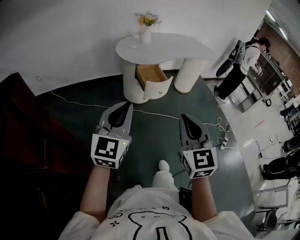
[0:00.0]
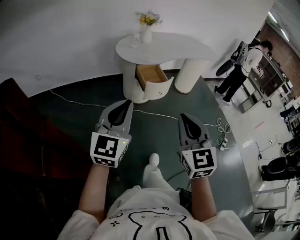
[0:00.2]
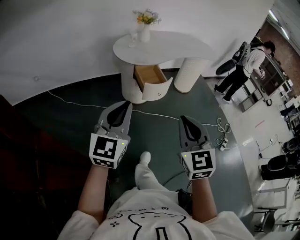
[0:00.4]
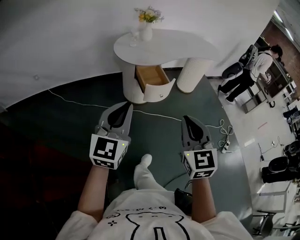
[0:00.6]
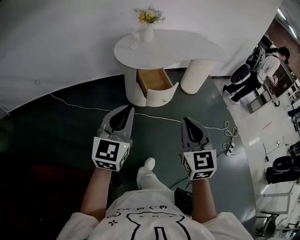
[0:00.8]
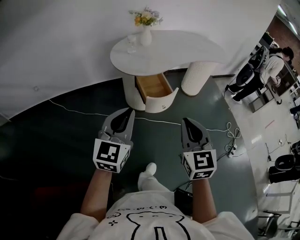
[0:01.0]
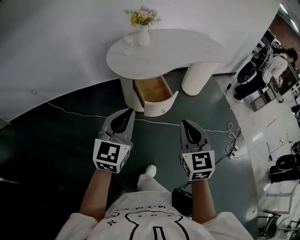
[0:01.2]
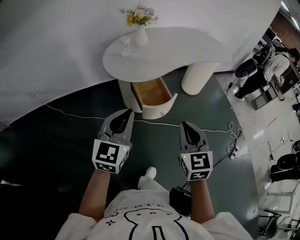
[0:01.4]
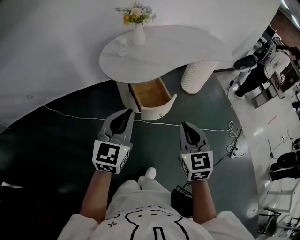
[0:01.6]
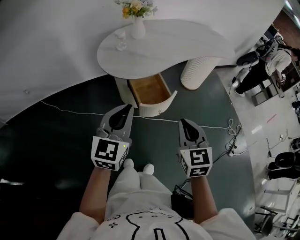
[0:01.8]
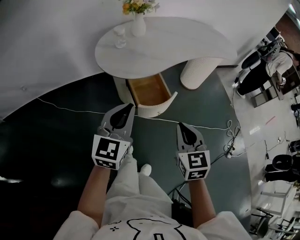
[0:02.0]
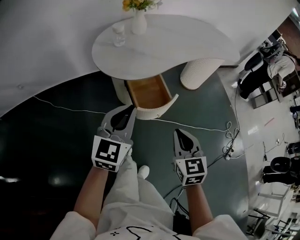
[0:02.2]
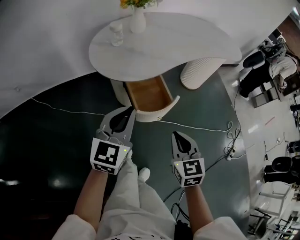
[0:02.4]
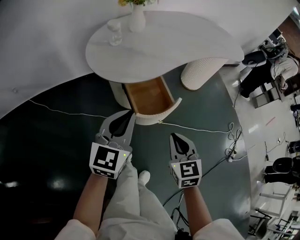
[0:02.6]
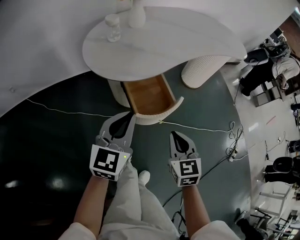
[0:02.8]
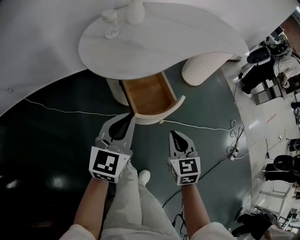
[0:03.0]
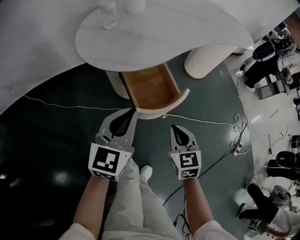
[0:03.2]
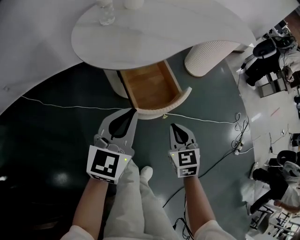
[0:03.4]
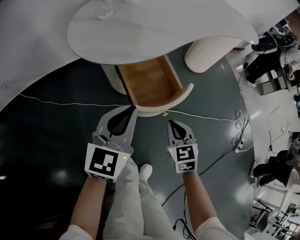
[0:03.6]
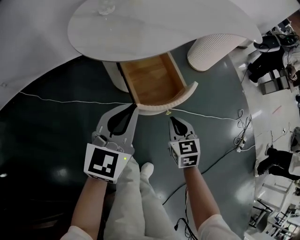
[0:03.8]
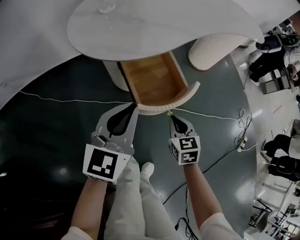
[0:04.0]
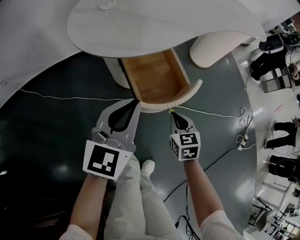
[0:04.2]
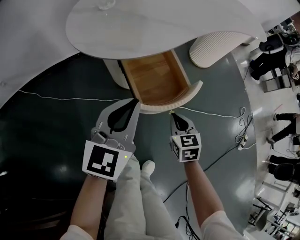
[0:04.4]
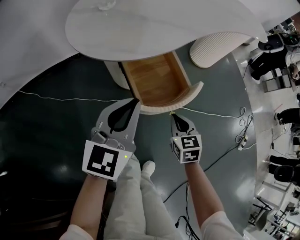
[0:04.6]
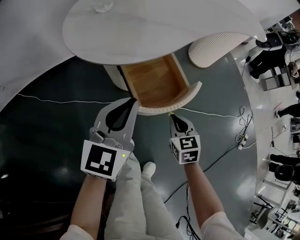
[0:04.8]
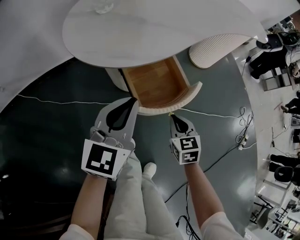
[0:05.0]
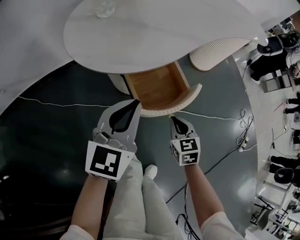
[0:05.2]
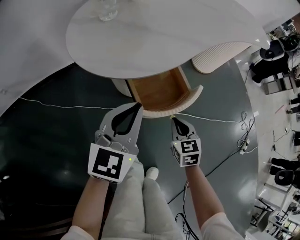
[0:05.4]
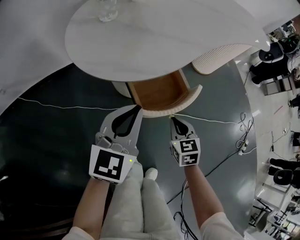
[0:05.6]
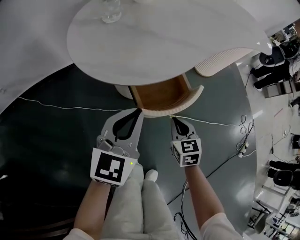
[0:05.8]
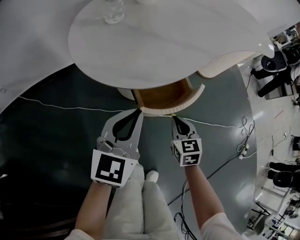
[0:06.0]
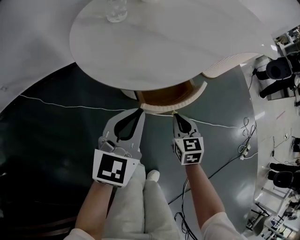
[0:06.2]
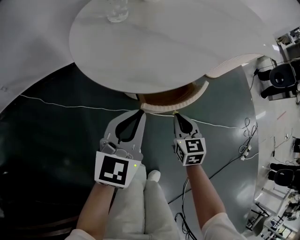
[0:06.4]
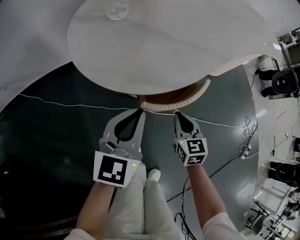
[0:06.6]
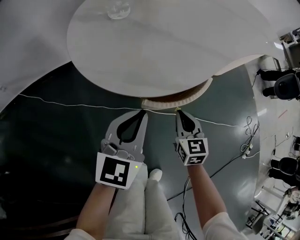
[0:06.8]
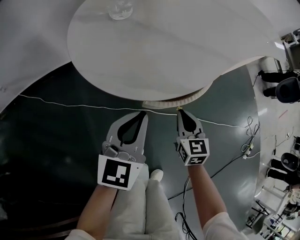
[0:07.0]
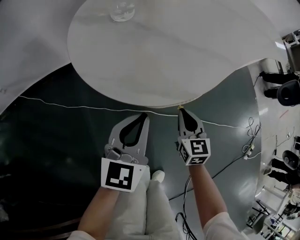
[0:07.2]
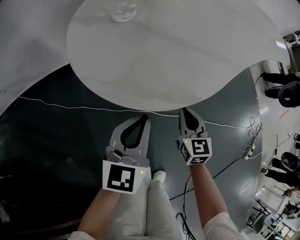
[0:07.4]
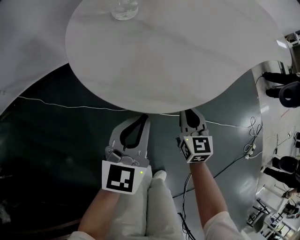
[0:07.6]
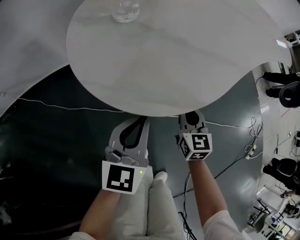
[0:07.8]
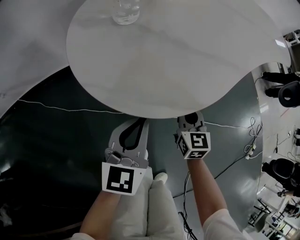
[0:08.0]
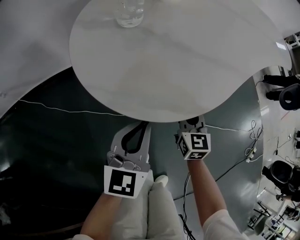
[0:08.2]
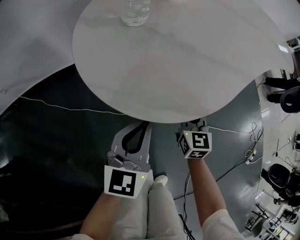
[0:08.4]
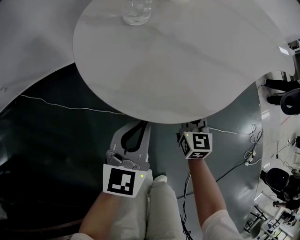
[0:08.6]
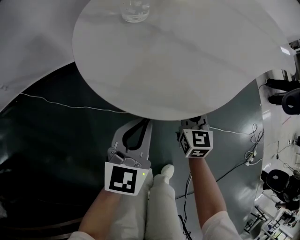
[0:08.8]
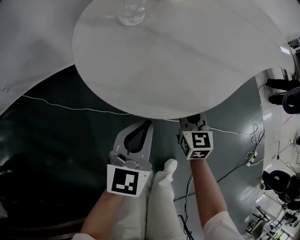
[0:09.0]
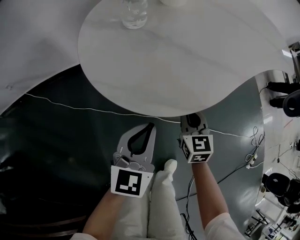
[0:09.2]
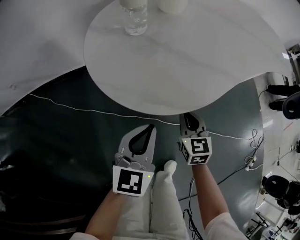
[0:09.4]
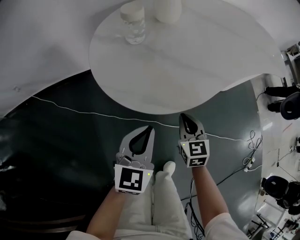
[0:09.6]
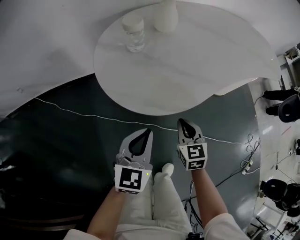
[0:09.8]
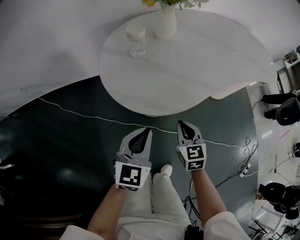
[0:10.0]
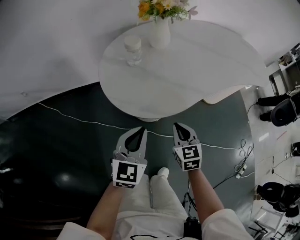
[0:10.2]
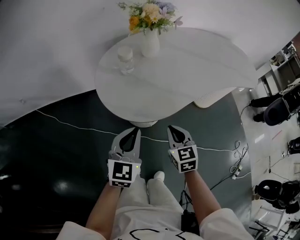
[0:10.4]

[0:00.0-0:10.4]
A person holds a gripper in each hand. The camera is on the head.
0:00.0 to 0:01.4: Both grippers travel together forward, approximately 35 cm.
0:01.4 to 0:03.0: The grippers both shift downward and forward by some 30 cm.
0:03.0 to 0:04.4: The left gripper moves downward, some 5 cm; the right gripper is displaced downward by about 15 cm.
0:04.4 to 0:06.0: The left gripper travels forward by about 5 cm; the right gripper is displaced forward and to the left by about 10 cm.
0:06.0 to 0:07.4: The right gripper moves forward, about 10 cm, while the left gripper shifts by some 10 cm.
0:07.4 to 0:09.0: The right gripper changes place by roughly 5 cm.
0:09.0 to 0:10.4: The left gripper is displaced upward by about 20 cm. The right gripper goes roughly 20 cm upward and backward.

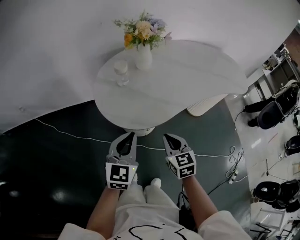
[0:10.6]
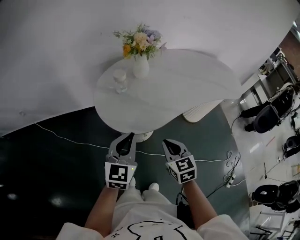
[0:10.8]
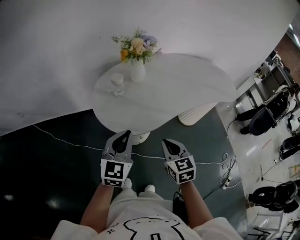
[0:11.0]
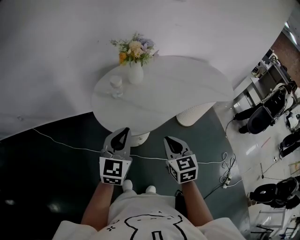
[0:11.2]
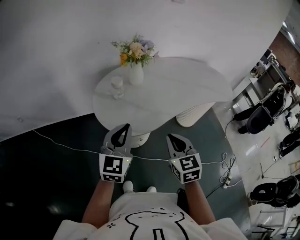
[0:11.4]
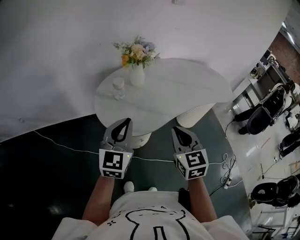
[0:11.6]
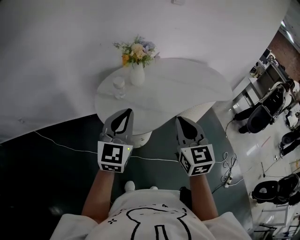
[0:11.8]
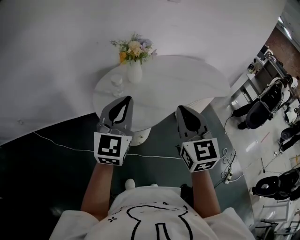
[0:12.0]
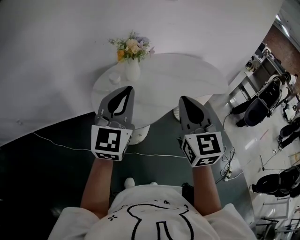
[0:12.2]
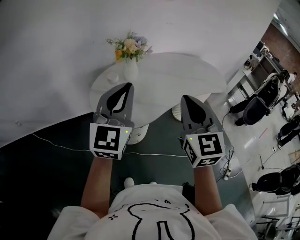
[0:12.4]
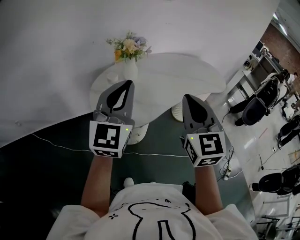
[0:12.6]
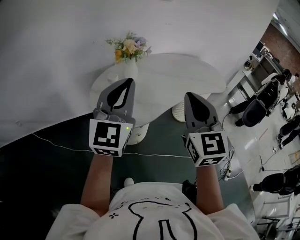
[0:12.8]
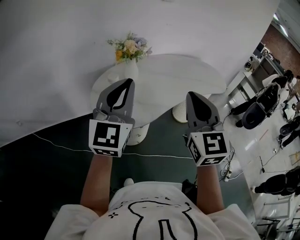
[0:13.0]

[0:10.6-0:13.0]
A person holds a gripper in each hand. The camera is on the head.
0:10.6 to 0:11.8: Both grippers travel together upward, approximately 20 cm. The right gripper swivels about 20 degrees.
0:11.8 to 0:13.0: Both grippers move upward, some 10 cm.

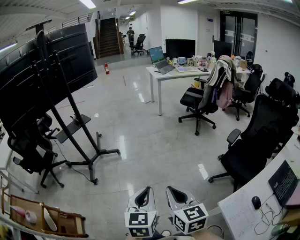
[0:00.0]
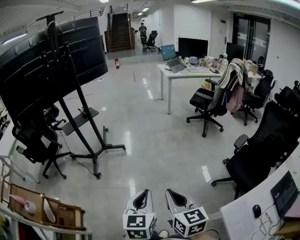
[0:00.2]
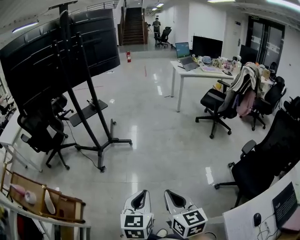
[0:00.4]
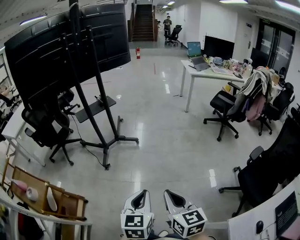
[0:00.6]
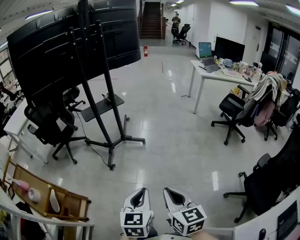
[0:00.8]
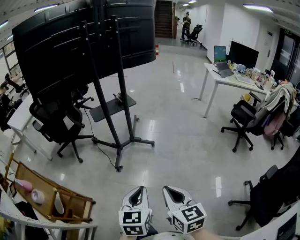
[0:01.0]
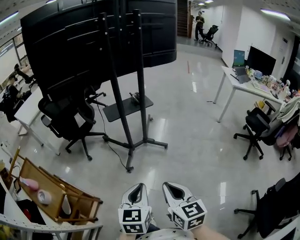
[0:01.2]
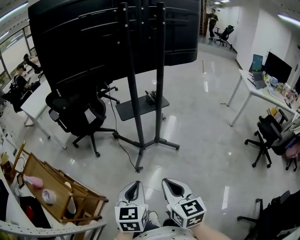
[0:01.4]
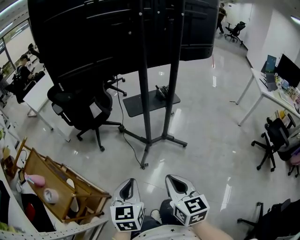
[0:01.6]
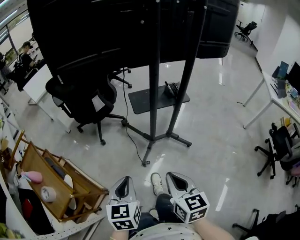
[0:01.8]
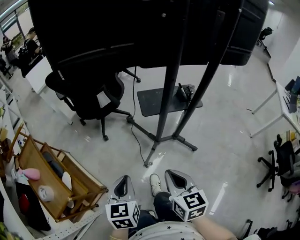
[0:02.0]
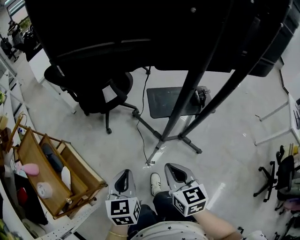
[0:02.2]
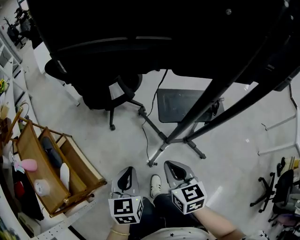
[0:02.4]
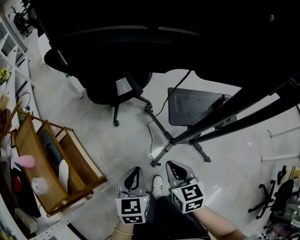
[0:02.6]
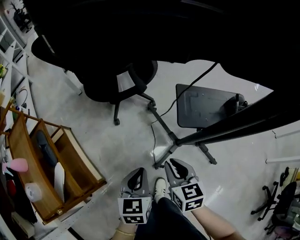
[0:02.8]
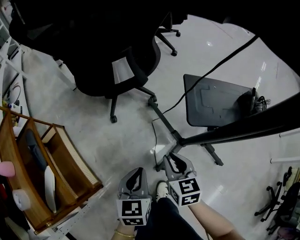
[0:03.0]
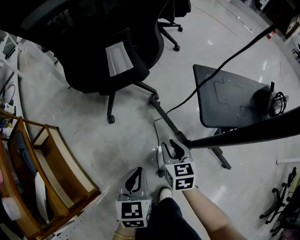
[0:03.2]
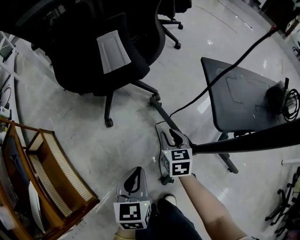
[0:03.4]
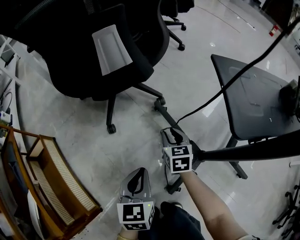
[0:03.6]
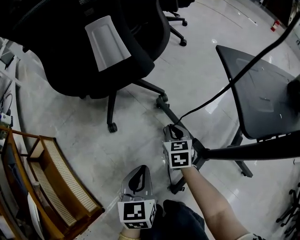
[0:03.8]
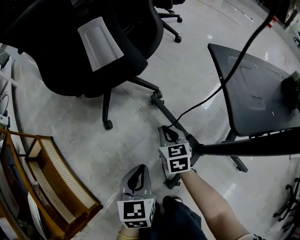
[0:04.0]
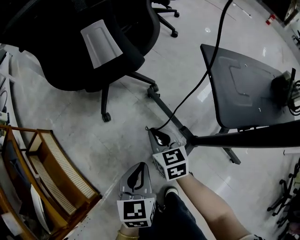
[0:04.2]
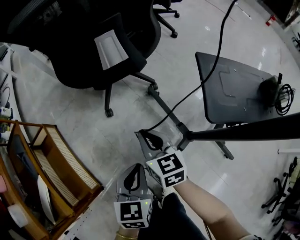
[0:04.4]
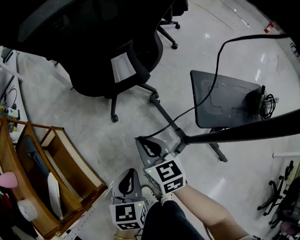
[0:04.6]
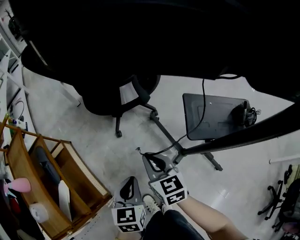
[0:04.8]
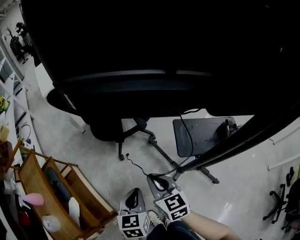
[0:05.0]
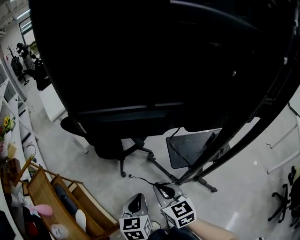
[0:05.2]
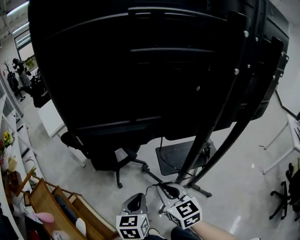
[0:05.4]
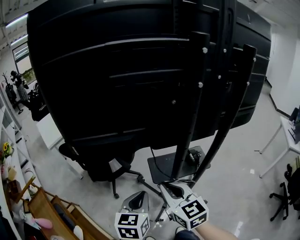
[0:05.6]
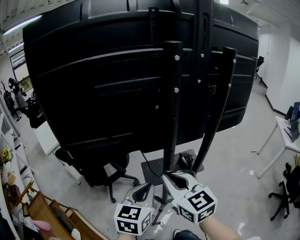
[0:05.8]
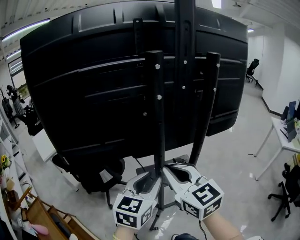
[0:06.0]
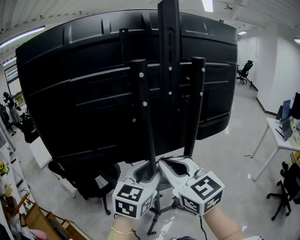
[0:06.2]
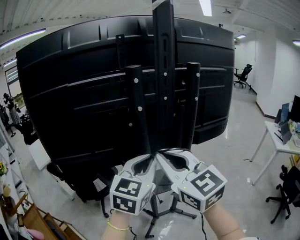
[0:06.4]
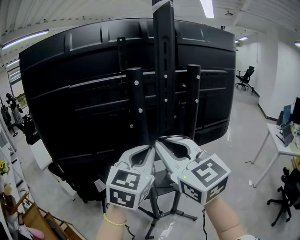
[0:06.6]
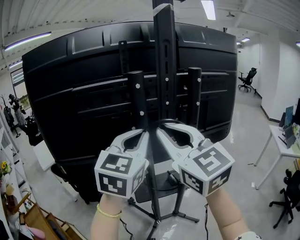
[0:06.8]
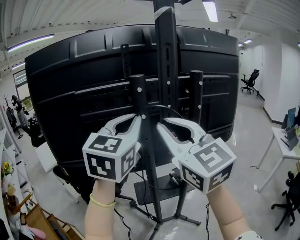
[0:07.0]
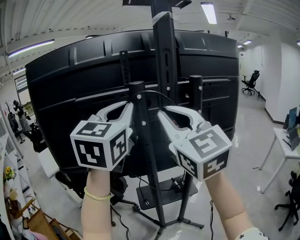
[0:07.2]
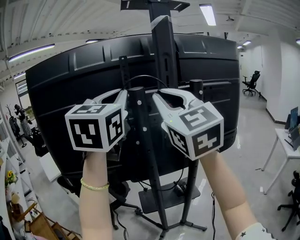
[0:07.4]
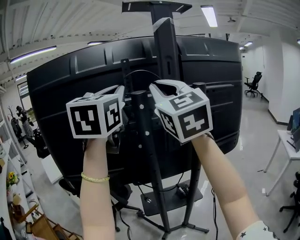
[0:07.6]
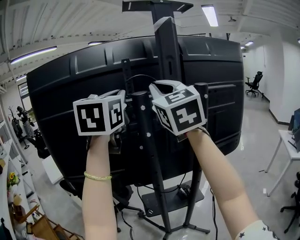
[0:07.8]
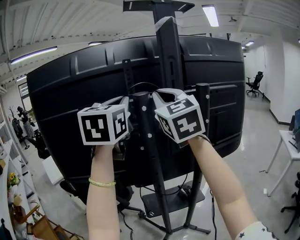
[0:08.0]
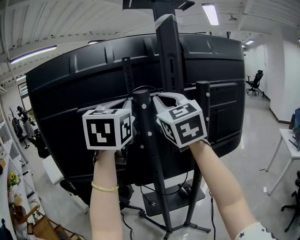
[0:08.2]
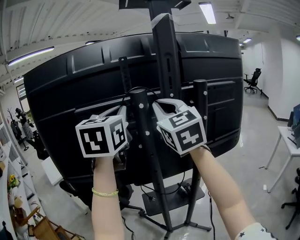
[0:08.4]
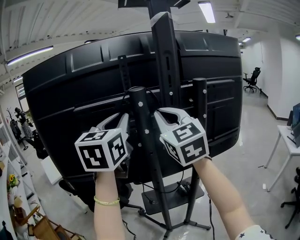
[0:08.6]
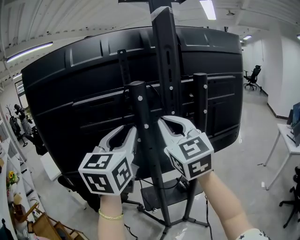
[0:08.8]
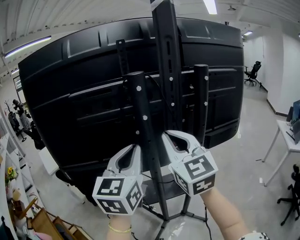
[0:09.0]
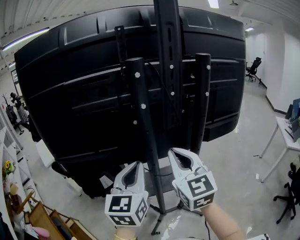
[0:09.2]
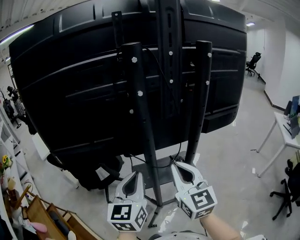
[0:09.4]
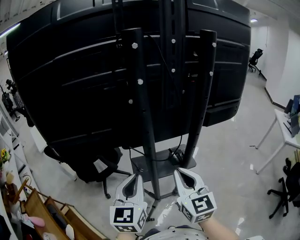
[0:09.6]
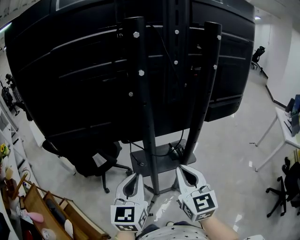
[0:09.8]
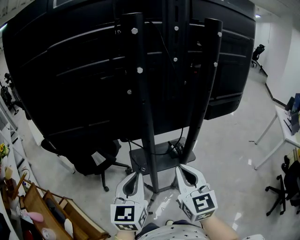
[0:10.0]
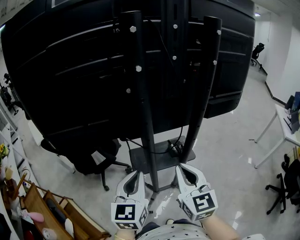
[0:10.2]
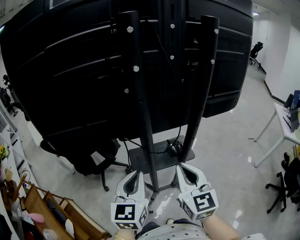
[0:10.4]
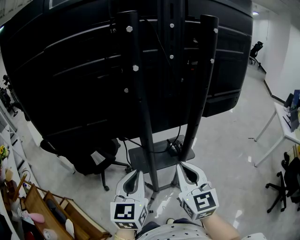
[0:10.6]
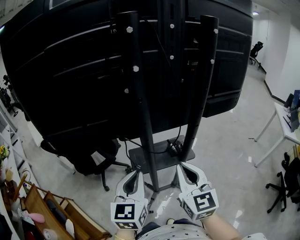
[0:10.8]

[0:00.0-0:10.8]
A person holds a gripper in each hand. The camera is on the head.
0:00.0 to 0:01.6: Both grippers are carried roughly 60 cm. The left gripper turns by approximately 40 degrees, while the right gripper turns by approximately 40 degrees.
0:01.6 to 0:03.0: The two grippers go some 50 cm forward and downward. The right gripper turns by some 30 degrees. The left gripper swivels some 20 degrees.
0:03.0 to 0:04.6: The right gripper moves to the left and forward, roughly 15 cm, and reaches approximately 30 cm downward, then returns. Meanwhile the left gripper travels to the left by about 5 cm, and reaches some 20 cm downward, then returns.
0:04.6 to 0:06.2: The two grippers go roughly 60 cm upward. The left gripper turns by some 60 degrees, and opens up, while the right gripper turns by roughly 40 degrees.
0:06.2 to 0:07.8: The right gripper heads upward and forward, covering some 30 cm, and changes its angle by about 30 degrees; the left gripper is displaced upward by some 30 cm, turns by some 30 degrees, and closes its fingers.
0:07.8 to 0:09.2: The two grippers go approximately 30 cm downward. The left gripper opens and closes again.
0:09.2 to 0:10.8: The two grippers go about 15 cm downward.
